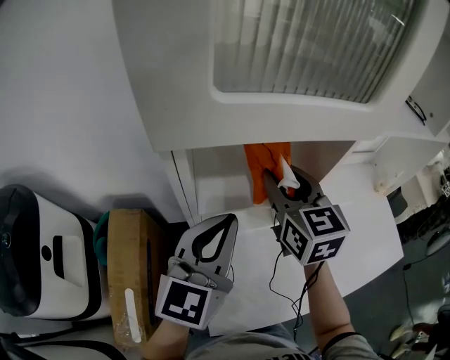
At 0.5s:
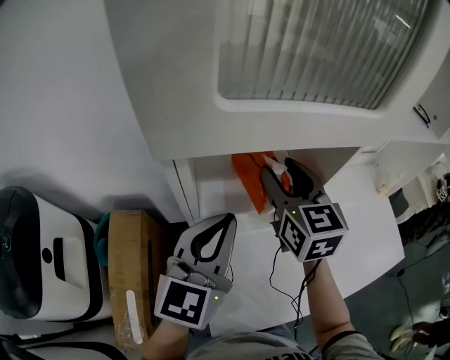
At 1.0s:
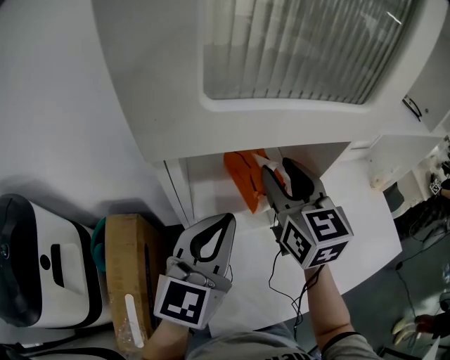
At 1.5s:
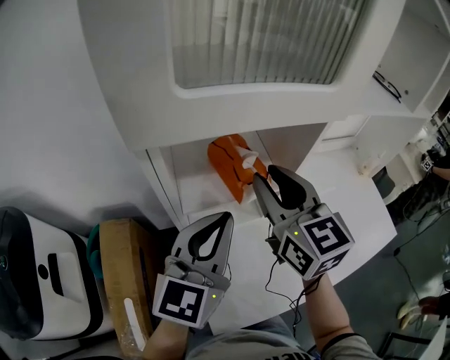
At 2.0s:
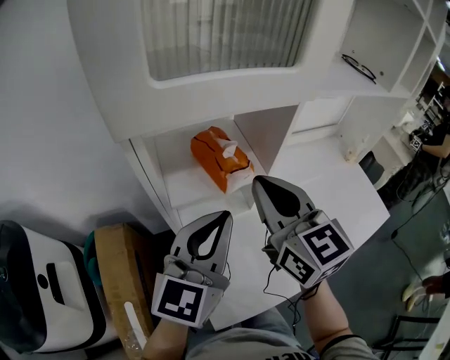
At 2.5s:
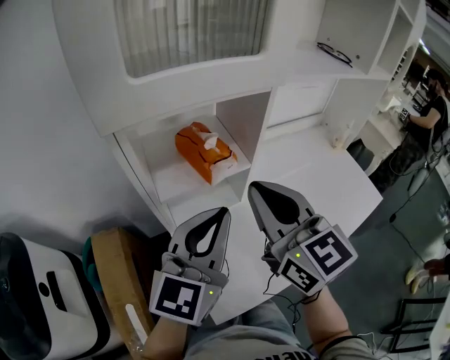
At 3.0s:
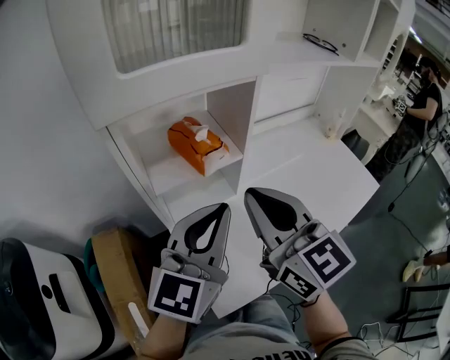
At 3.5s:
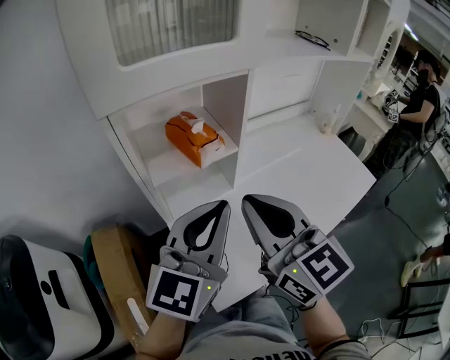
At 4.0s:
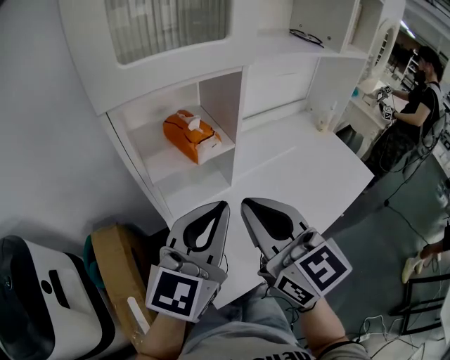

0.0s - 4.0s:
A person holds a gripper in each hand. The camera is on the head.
0.0s - 2.0s: The right gripper goes roughly 10 cm backward, and closes. The left gripper changes place by about 5 cm.
2.0s - 4.0s: The right gripper shifts some 15 cm backward. The left gripper shifts about 10 cm backward.

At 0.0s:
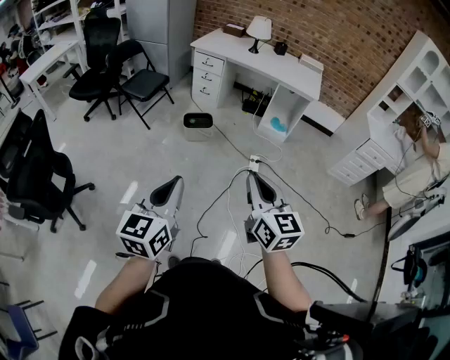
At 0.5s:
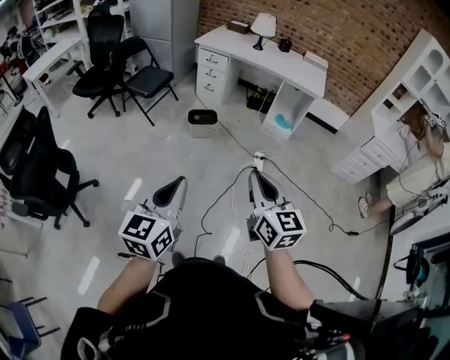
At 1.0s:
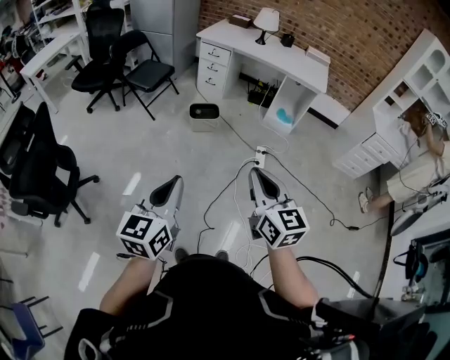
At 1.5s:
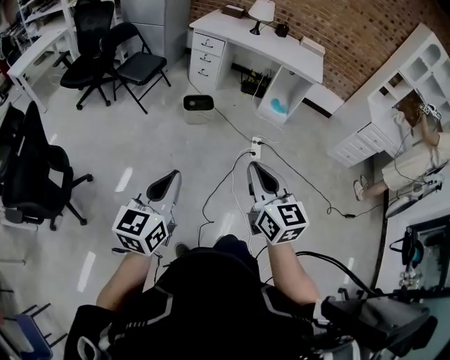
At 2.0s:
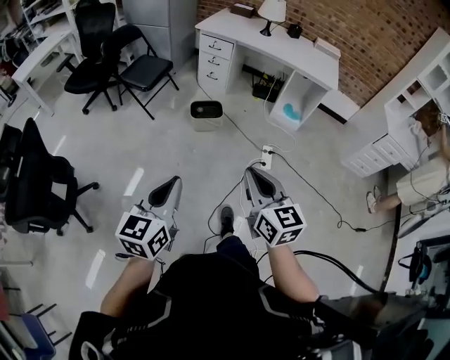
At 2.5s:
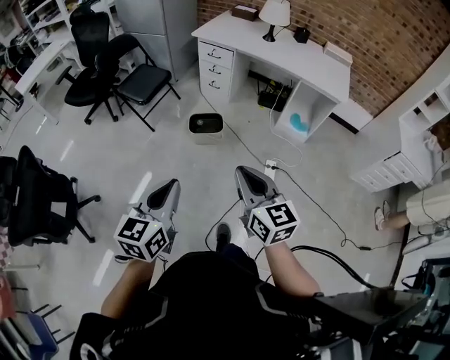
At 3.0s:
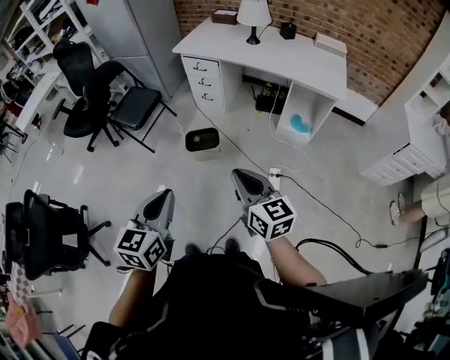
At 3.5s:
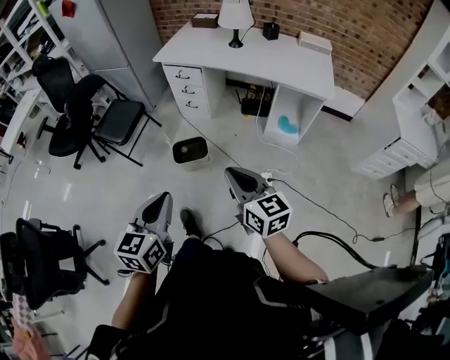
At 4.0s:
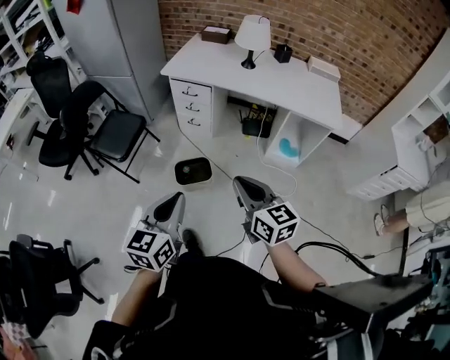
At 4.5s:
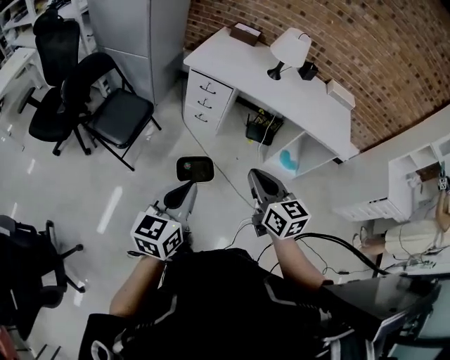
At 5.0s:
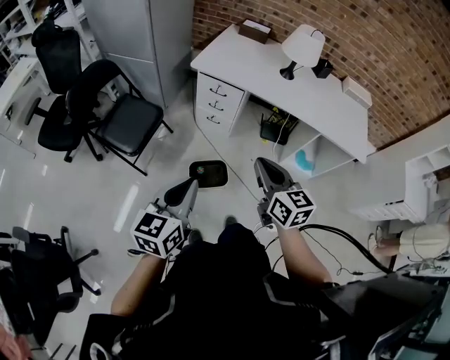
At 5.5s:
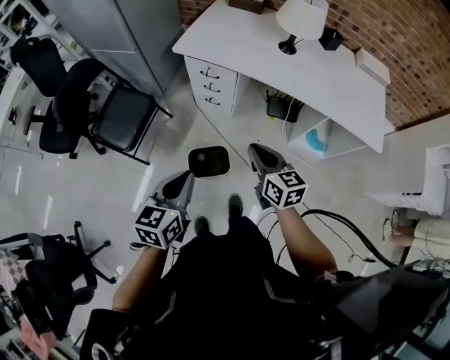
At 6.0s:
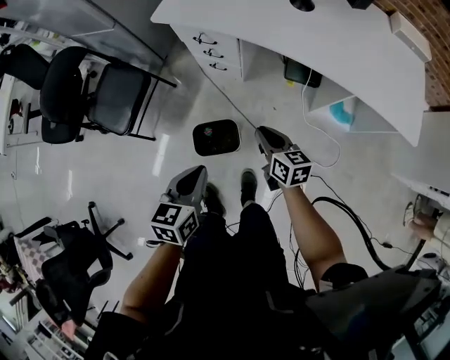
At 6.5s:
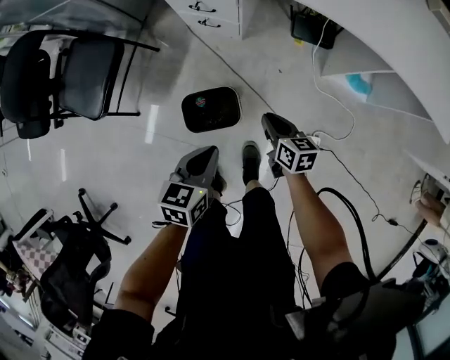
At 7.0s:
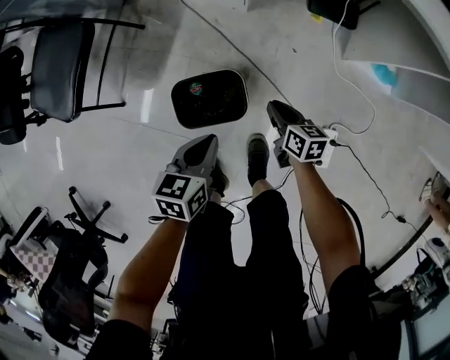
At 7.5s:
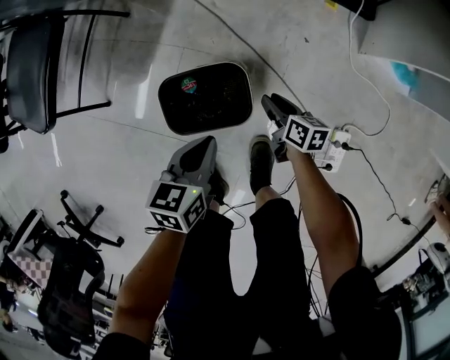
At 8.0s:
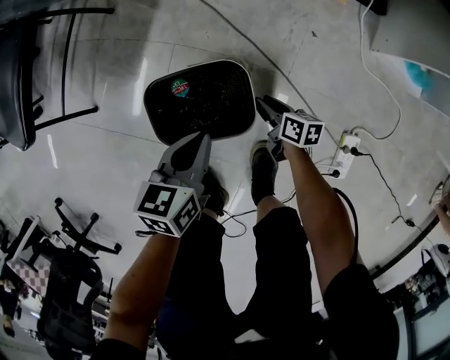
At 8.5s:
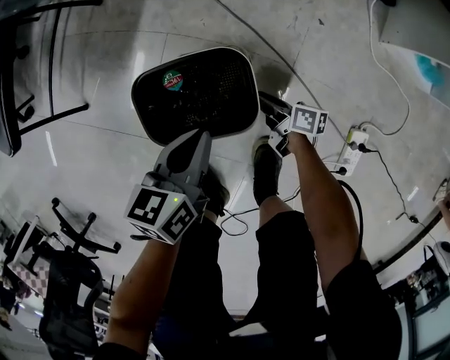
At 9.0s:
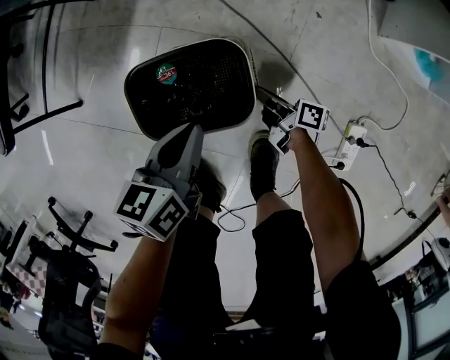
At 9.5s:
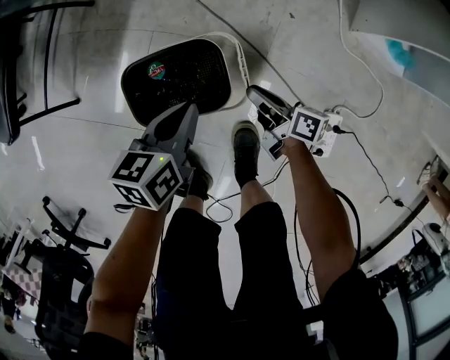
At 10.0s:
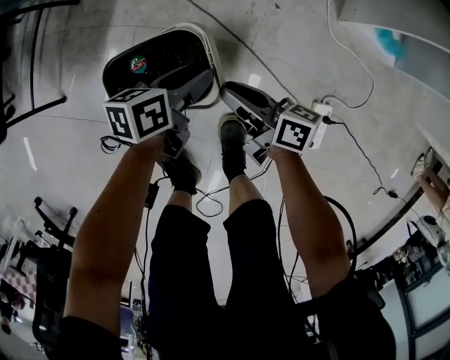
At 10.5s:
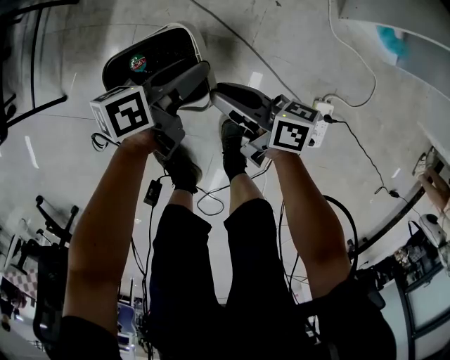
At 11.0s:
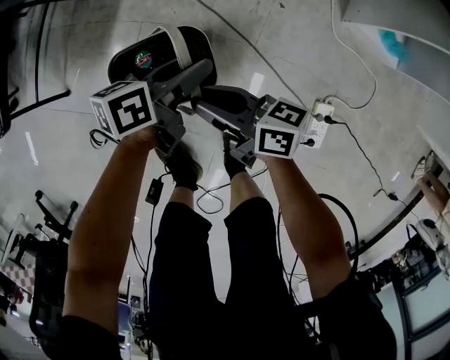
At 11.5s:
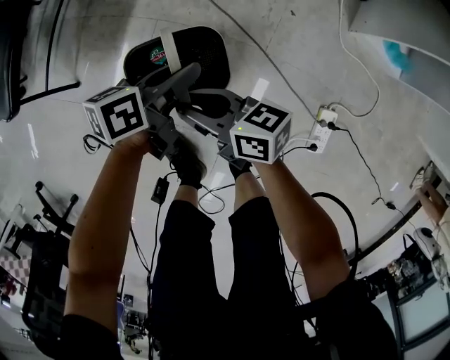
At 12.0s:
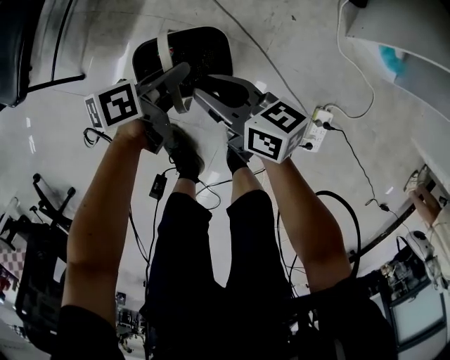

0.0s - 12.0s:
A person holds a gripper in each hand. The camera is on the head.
0.0s - 2.0s: The right gripper goes approximately 15 cm forward, to the left and downward; the left gripper moves forward, downward and to the left, some 15 cm.
2.0s - 4.0s: The pair of grippers is taken forward, some 50 cm.
4.0s - 6.0s: The two grippers go roughly 40 cm forward and downward. The left gripper changes its angle by roughly 20 degrees. The right gripper turns by roughly 20 degrees.
6.0s - 8.0s: The two grippers go about 60 cm downward. The right gripper changes its angle by roughly 30 degrees, and opens up.
8.0s - 10.0s: The left gripper shifts approximately 10 cm to the right, swivels approximately 20 degrees, and opens; the right gripper goes some 20 cm upward, and turns by some 20 degrees.
10.0s - 12.0s: The grippers both shift to the left and upward by roughly 10 cm. The right gripper changes its angle by some 20 degrees; the left gripper closes its fingers.

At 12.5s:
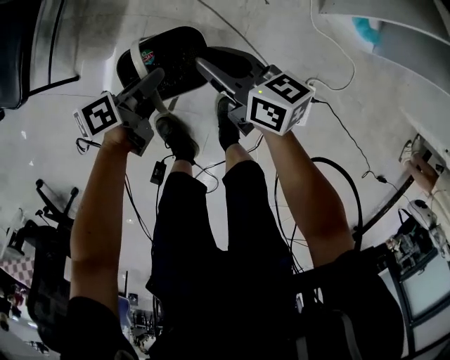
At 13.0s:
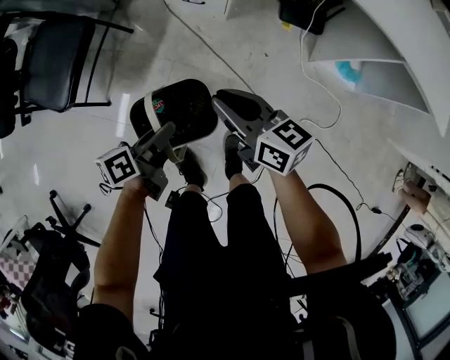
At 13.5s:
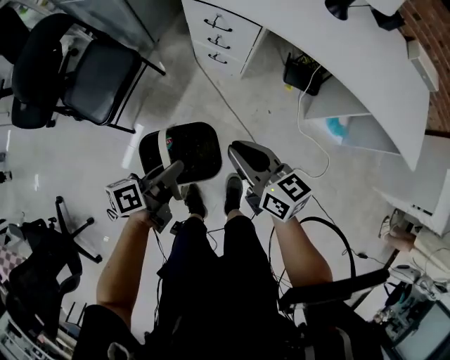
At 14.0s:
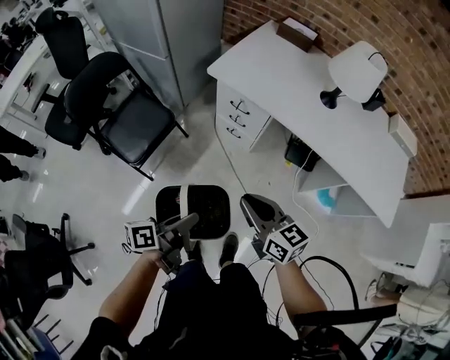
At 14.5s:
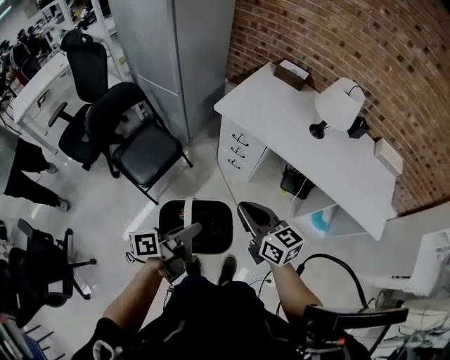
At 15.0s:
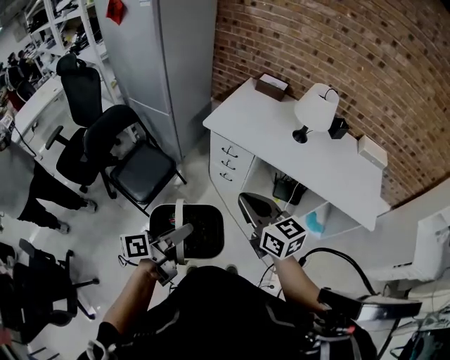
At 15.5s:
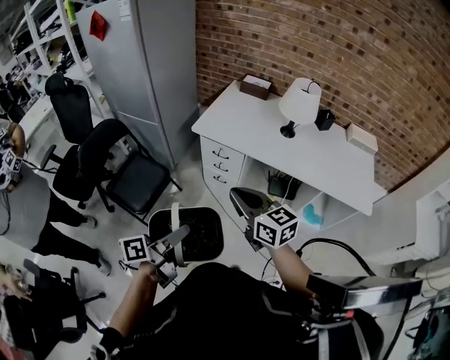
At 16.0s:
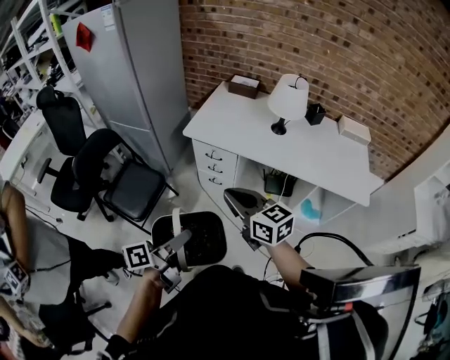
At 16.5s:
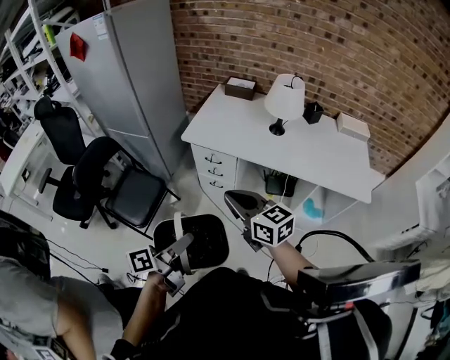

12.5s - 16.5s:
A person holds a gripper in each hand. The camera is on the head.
12.5s - 14.5s: The two grippers go approximately 50 cm upward. The left gripper rotates some 30 degrees. Meanwhile the right gripper turns by approximately 30 degrees.
14.5s - 16.5s: The two grippers go approximately 10 cm upward.

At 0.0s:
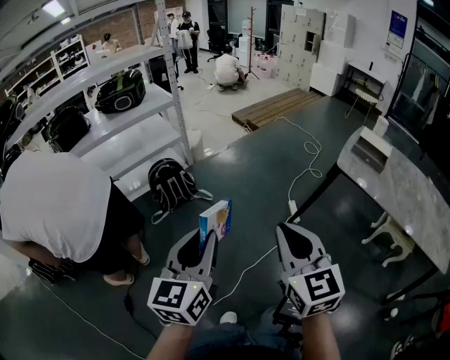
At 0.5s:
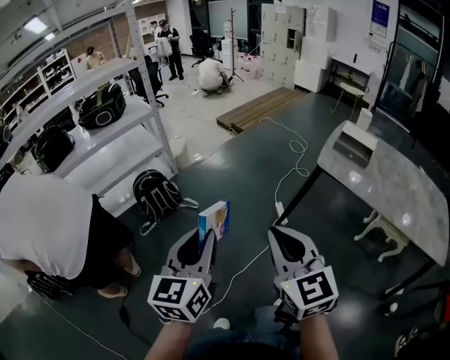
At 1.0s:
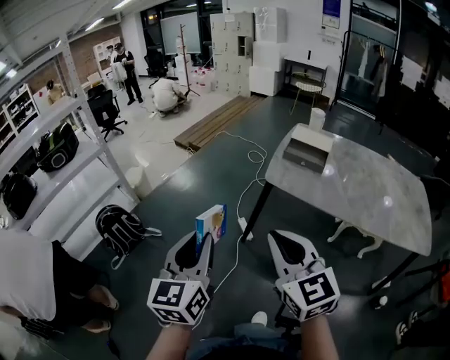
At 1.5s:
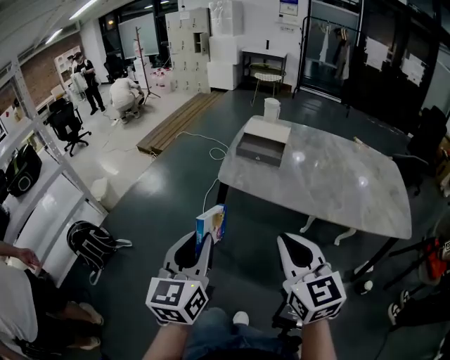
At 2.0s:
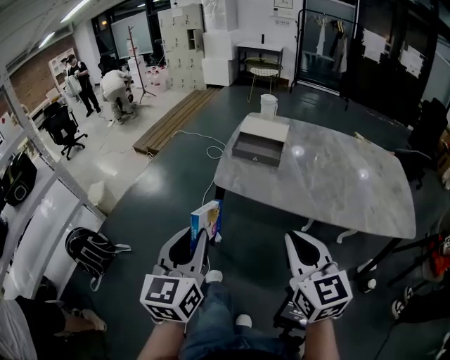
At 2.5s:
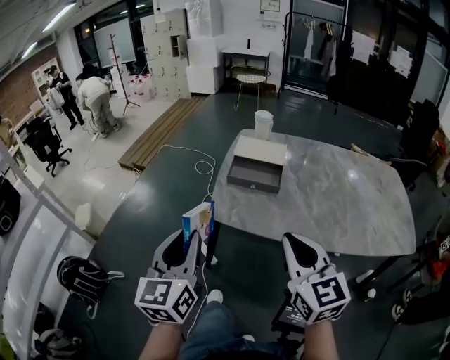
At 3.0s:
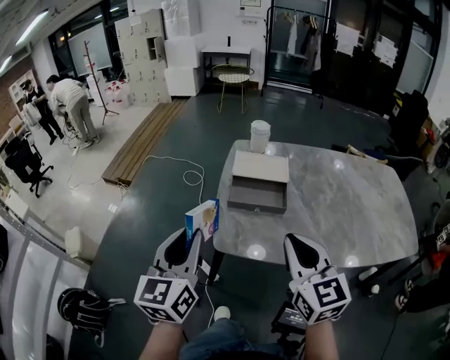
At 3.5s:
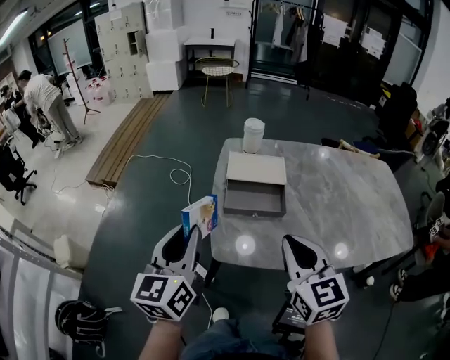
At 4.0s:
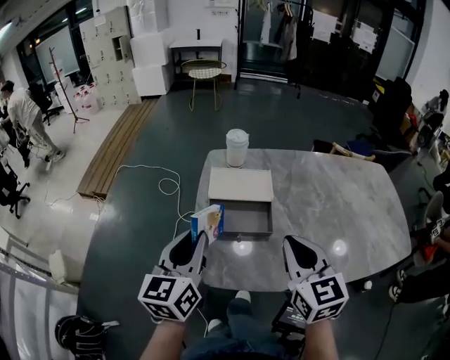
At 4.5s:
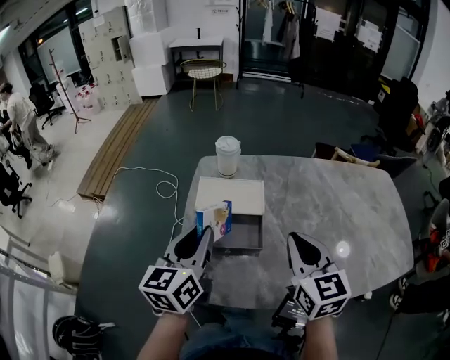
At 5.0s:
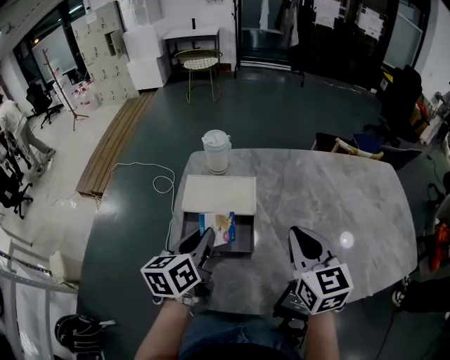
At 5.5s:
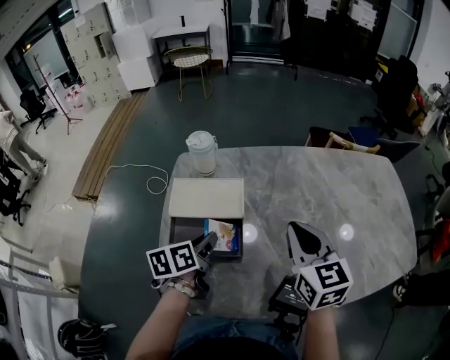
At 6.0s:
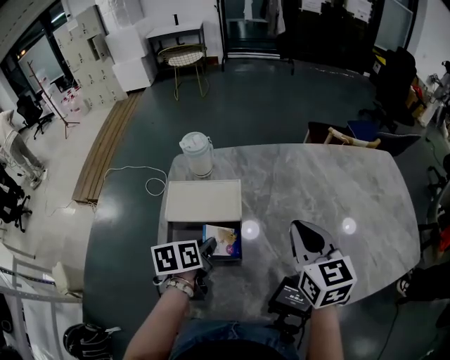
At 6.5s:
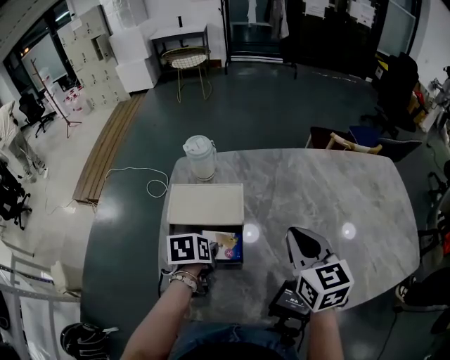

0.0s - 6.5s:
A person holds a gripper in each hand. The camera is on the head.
0.0s - 2.0s: Both grippers are carried some 40 cm. The right gripper turns by about 30 degrees. The left gripper turns by about 30 degrees.
2.0s - 4.5s: The grippers both shift forward by approximately 40 cm. The left gripper turns by about 30 degrees; the right gripper rotates about 20 degrees.
4.5s - 6.5s: The left gripper travels downward by approximately 20 cm, and points its fingers roughly 50 degrees further downward, while the right gripper shifts about 10 cm forward, to the right and downward.
